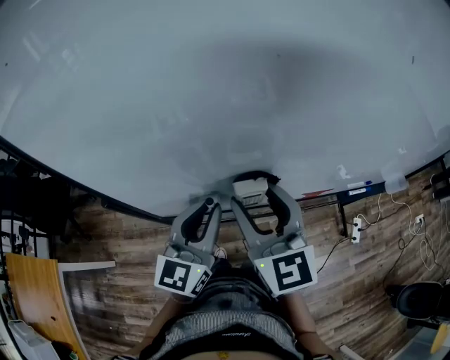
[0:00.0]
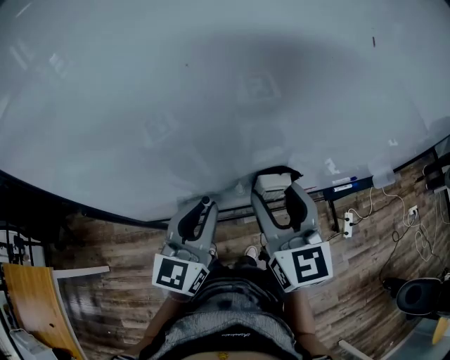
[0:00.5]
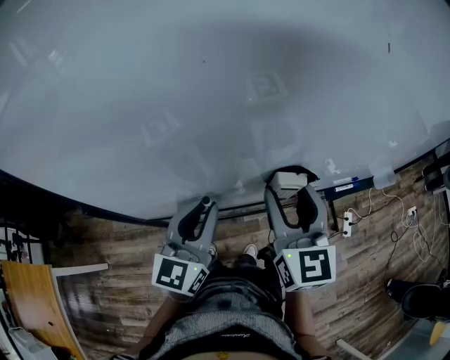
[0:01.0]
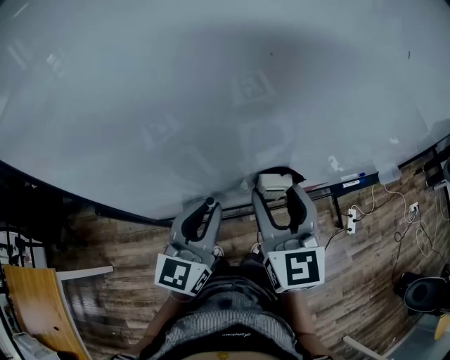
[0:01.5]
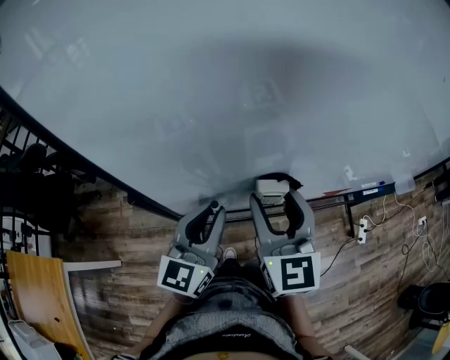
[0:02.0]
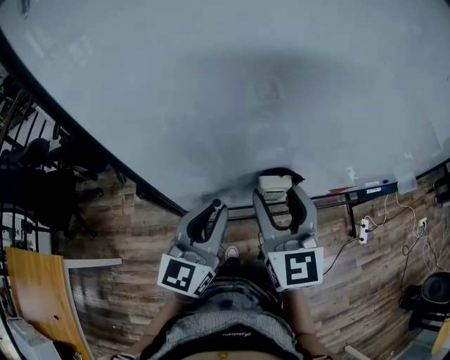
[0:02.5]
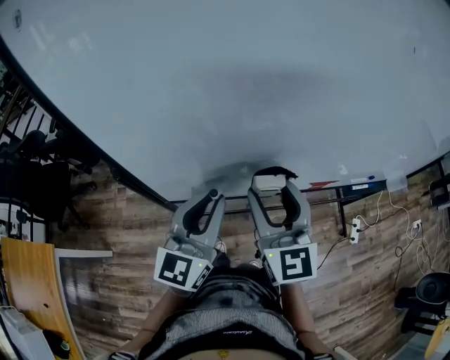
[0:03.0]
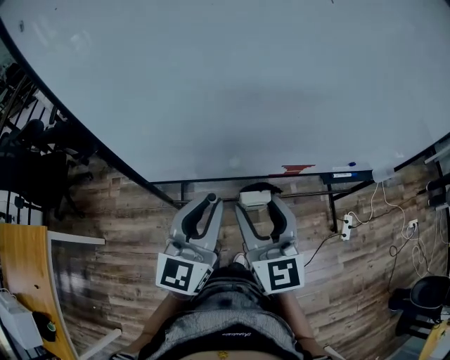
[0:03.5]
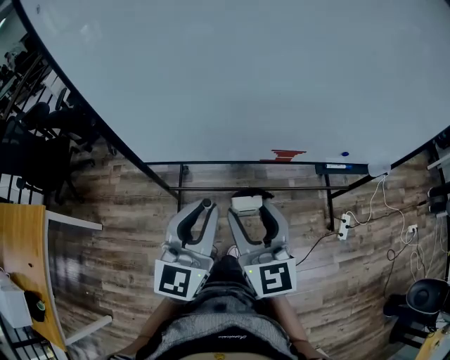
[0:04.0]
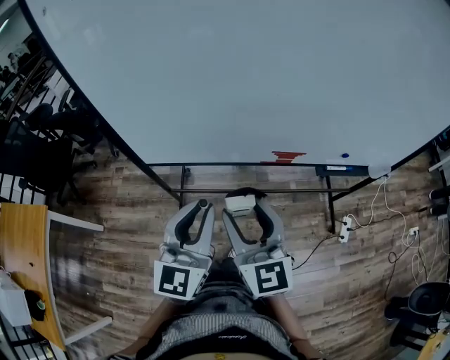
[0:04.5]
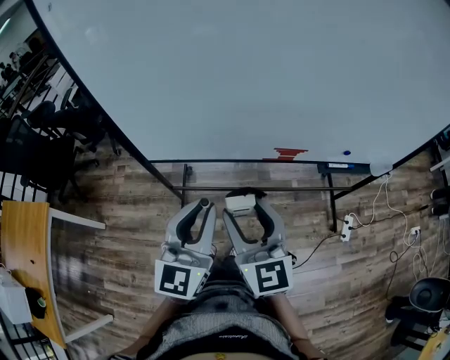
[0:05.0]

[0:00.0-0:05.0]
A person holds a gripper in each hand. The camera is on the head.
0:00.0 to 0:02.5: The left gripper travels to the left by about 10 cm. Meanwhile the right gripper moves some 10 cm to the right and comes back.
0:02.5 to 0:05.0: The left gripper moves to the right and backward, roughly 25 cm. Meanwhile the right gripper travels backward and to the right by about 25 cm.

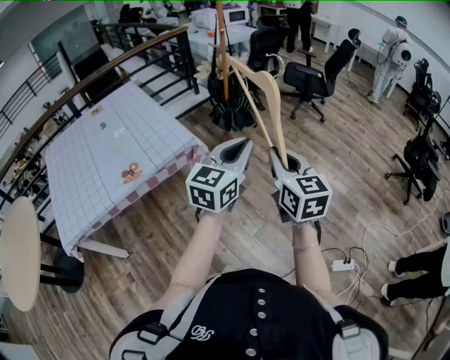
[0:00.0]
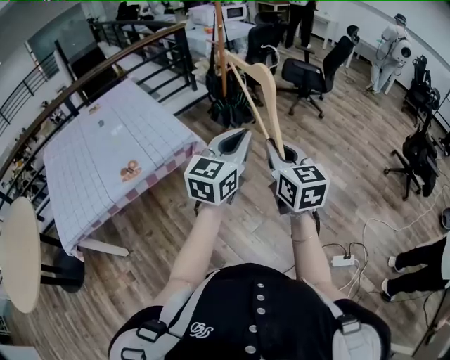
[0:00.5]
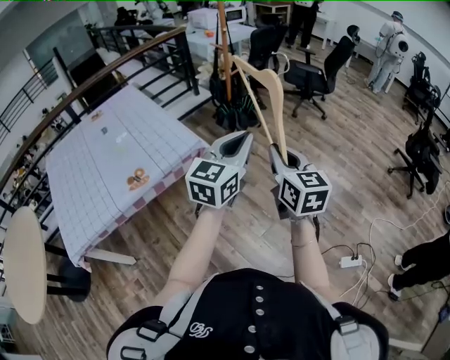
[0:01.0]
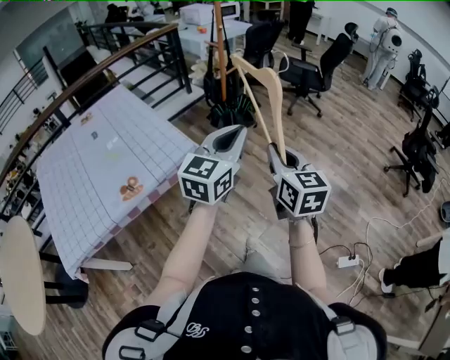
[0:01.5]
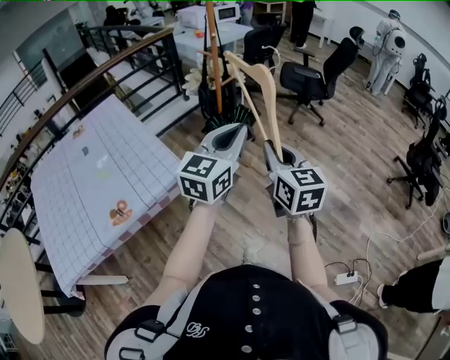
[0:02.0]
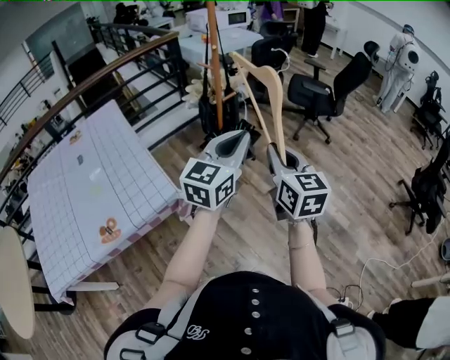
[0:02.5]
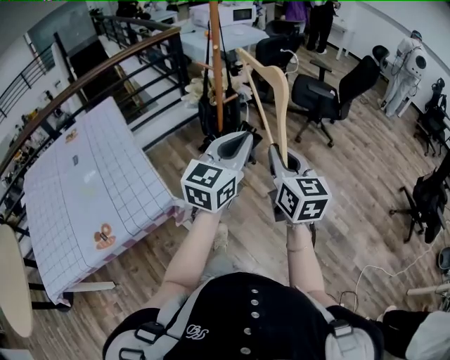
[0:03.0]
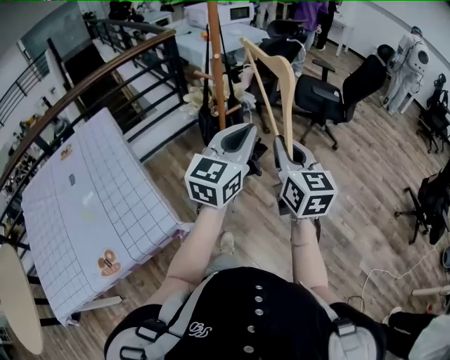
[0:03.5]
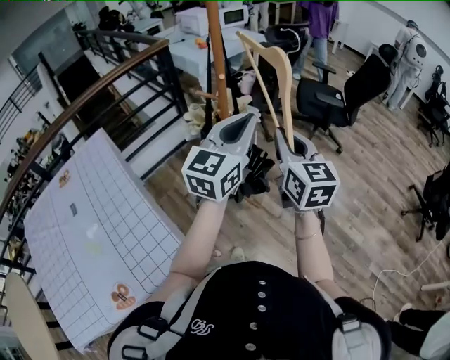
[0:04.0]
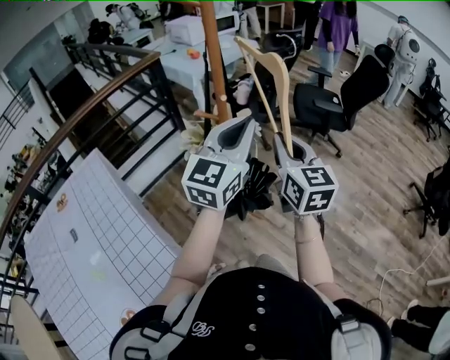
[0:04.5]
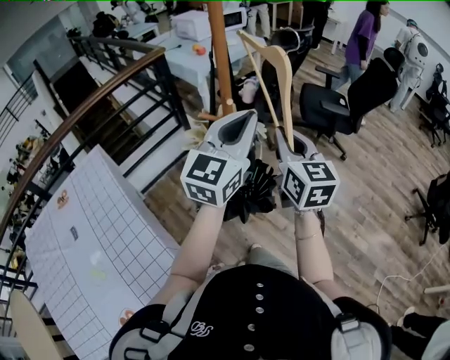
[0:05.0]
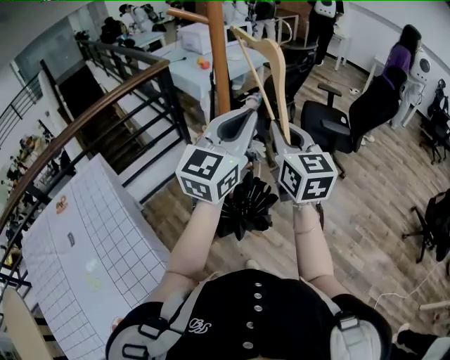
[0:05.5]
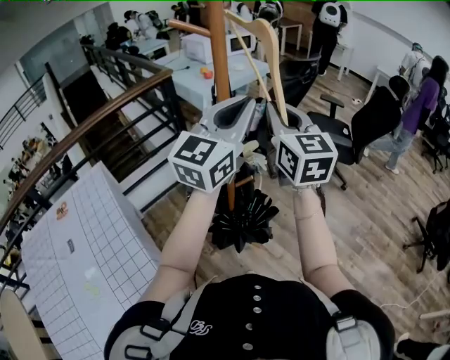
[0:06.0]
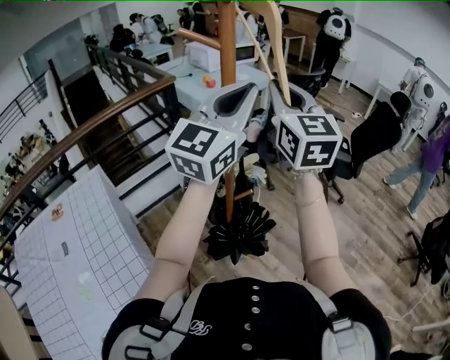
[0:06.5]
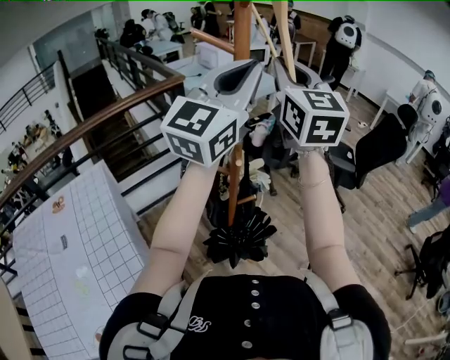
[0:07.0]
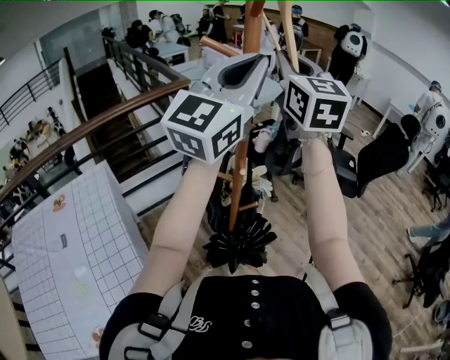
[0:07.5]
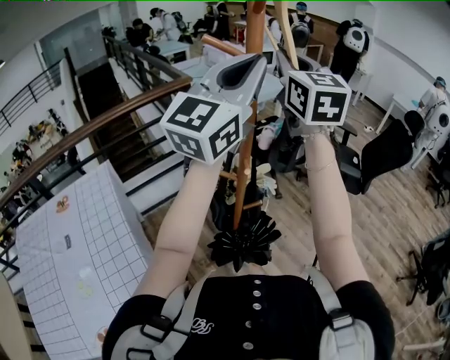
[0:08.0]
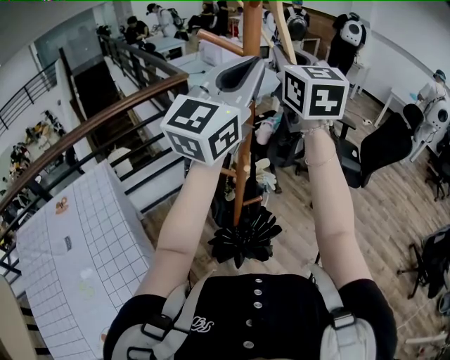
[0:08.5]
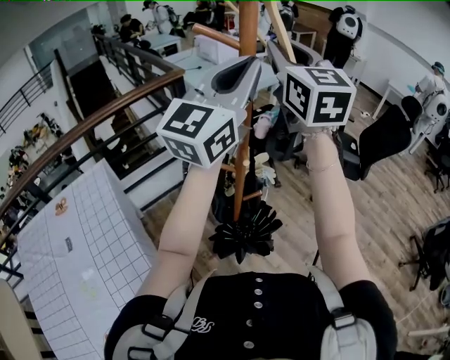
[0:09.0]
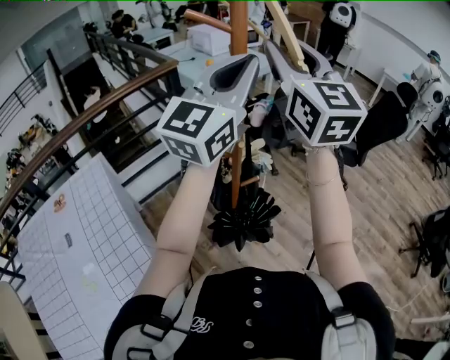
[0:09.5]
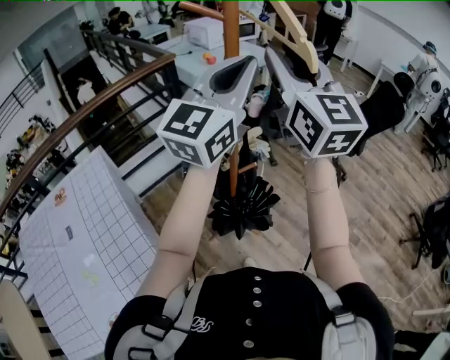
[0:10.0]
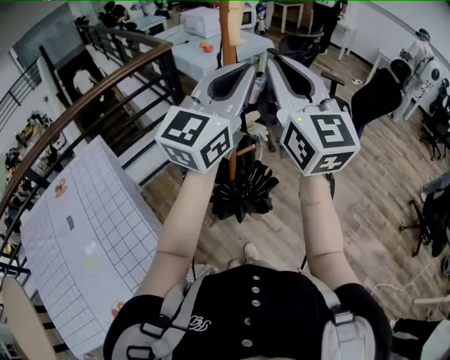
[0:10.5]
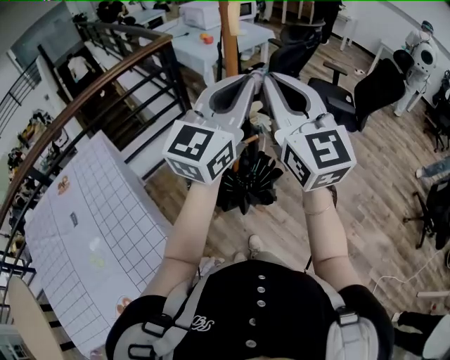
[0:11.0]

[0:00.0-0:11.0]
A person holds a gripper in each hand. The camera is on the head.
0:00.0 to 0:02.0: The grippers both shift forward by roughly 20 cm.
0:02.0 to 0:03.5: Both grippers move forward, approximately 30 cm.
0:03.5 to 0:05.5: The right gripper heads forward and to the left, covering some 25 cm, while the left gripper is displaced forward, upward and to the left by some 25 cm.
0:05.5 to 0:07.5: The left gripper heads upward, covering approximately 20 cm. The right gripper goes approximately 25 cm upward and forward.
0:07.5 to 0:09.0: The grippers make only small movements.
0:09.0 to 0:11.0: The right gripper is displaced backward and downward by roughly 25 cm, while the left gripper heads downward and backward, covering about 15 cm.

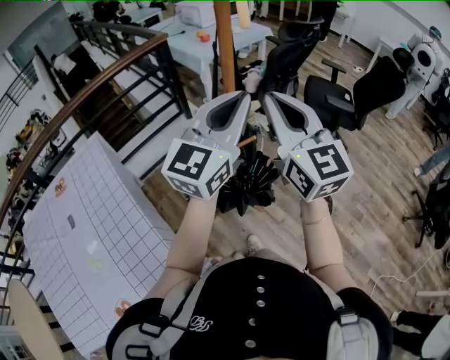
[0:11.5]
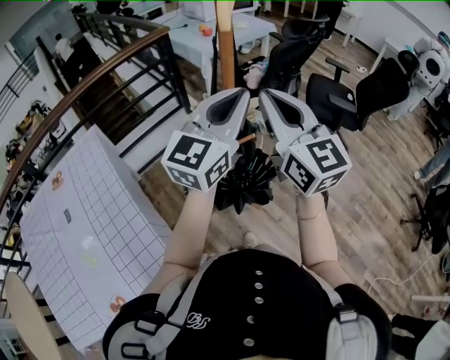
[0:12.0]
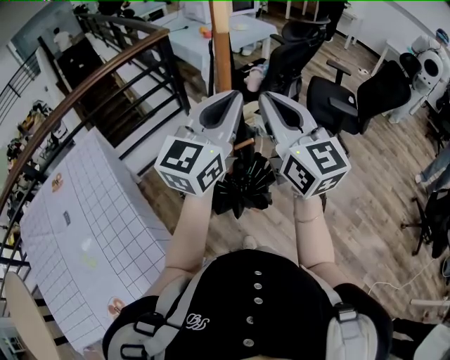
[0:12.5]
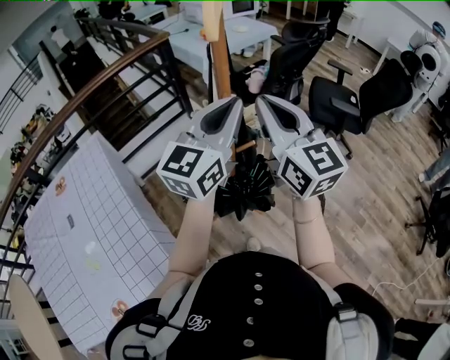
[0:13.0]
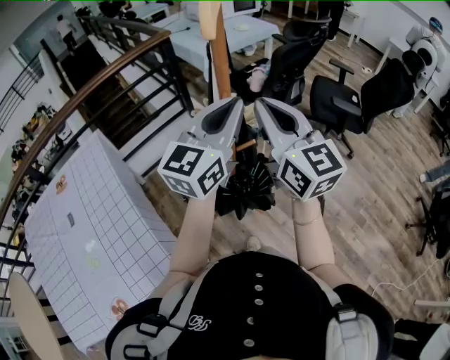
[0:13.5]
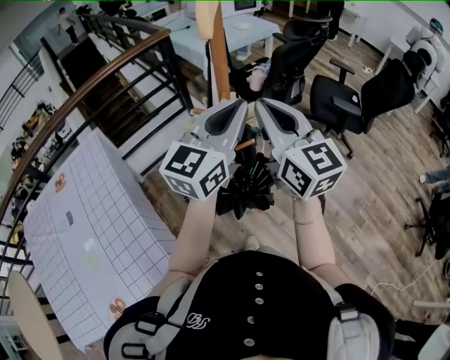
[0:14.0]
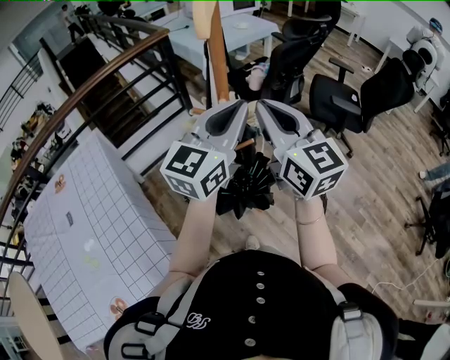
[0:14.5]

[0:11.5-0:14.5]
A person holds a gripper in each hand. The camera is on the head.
0:11.5 to 0:13.0: The grippers move only a little.
0:13.0 to 0:14.5: The grippers move only a little.

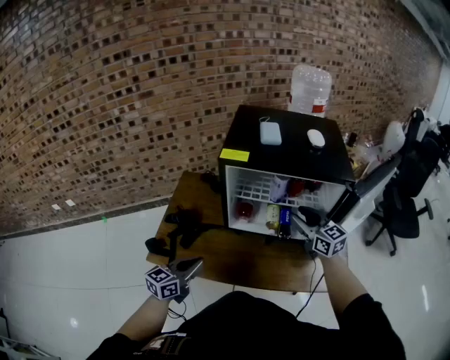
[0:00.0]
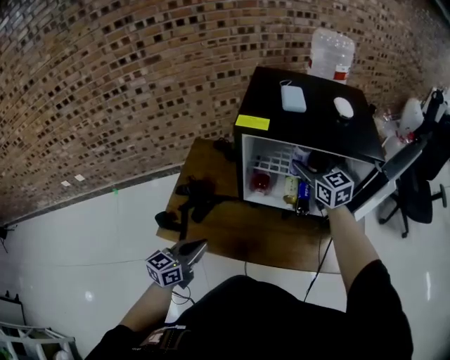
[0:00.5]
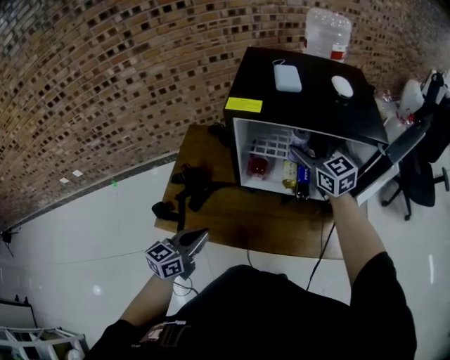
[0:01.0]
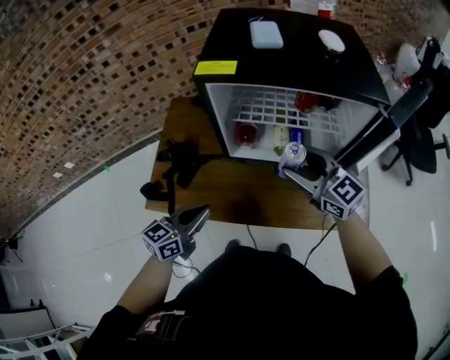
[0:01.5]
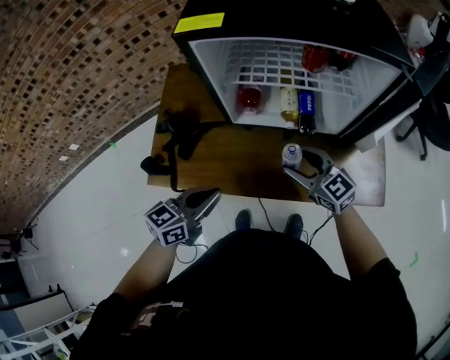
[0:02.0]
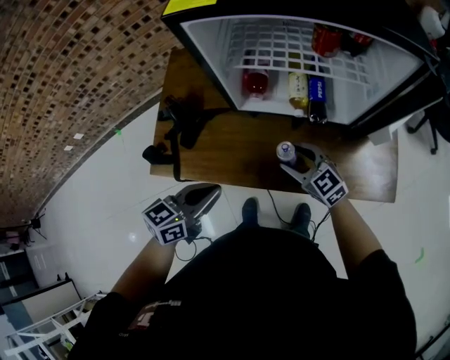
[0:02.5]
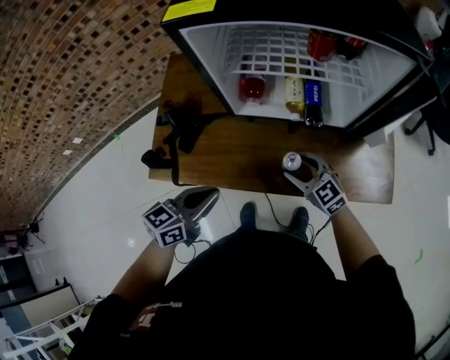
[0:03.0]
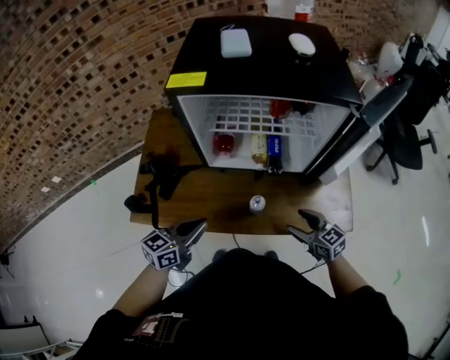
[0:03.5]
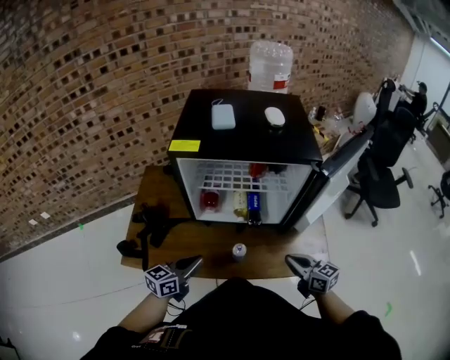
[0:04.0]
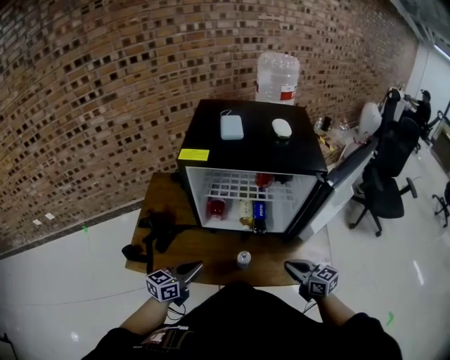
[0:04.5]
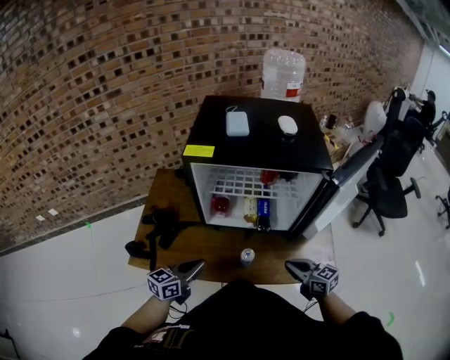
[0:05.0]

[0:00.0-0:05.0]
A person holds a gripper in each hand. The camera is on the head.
0:00.0 to 0:02.5: The left gripper goes roughly 10 cm downward, while the right gripper travels downward by roughly 25 cm, and rotates roughly 20 degrees.
0:02.5 to 0:05.0: The left gripper shifts by about 5 cm; the right gripper heads to the right, upward and backward, covering some 20 cm, swivels some 30 degrees, and closes up.

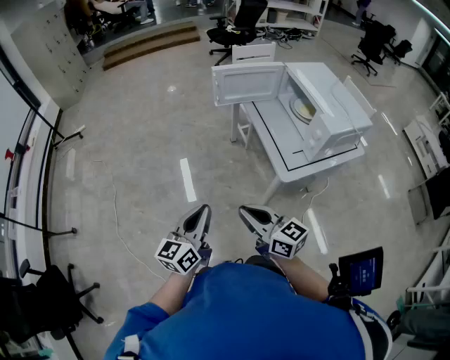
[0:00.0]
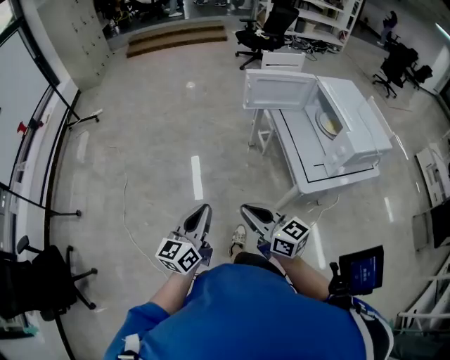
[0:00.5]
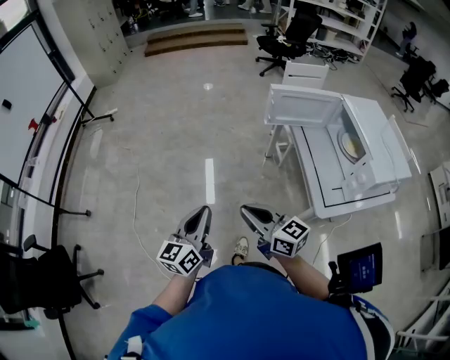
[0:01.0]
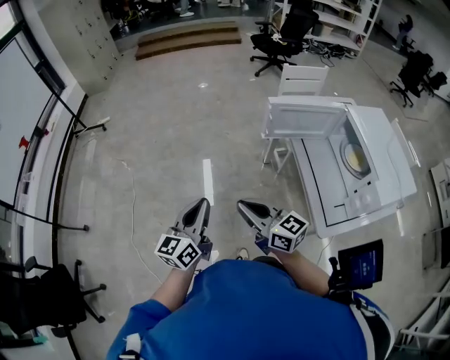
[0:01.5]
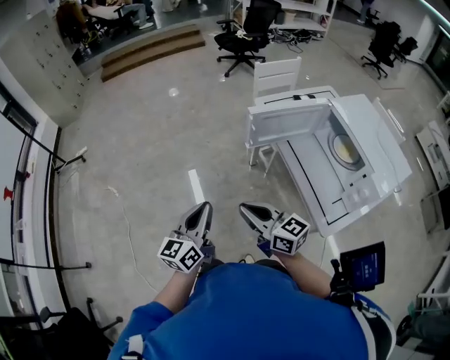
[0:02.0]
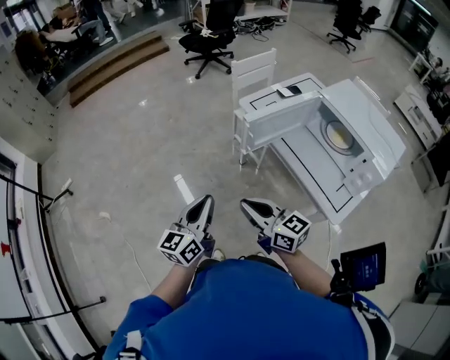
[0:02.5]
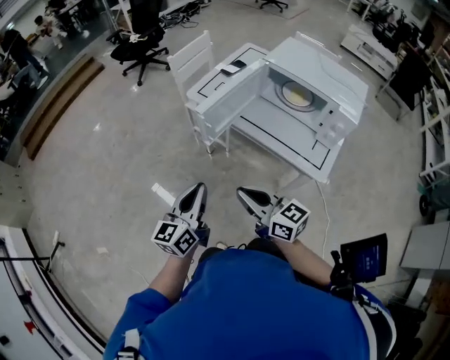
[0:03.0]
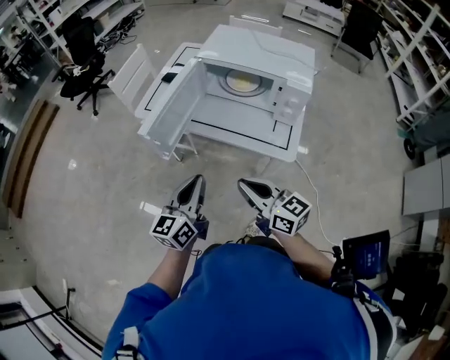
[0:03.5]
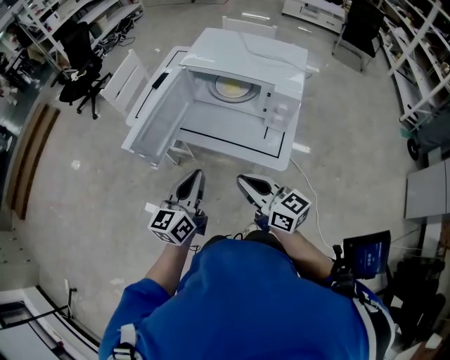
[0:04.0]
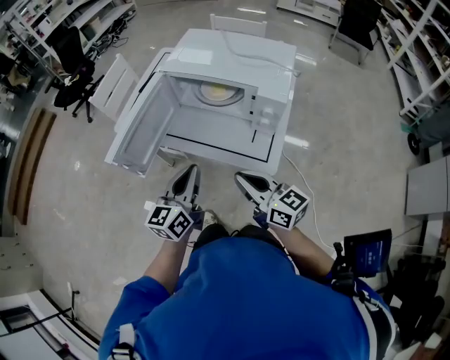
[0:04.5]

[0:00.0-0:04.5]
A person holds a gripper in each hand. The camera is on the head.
0:00.0 to 0:02.0: The two grippers go roughly 30 cm forward.
0:02.0 to 0:04.5: The left gripper moves approximately 30 cm, and changes its angle by approximately 50 degrees; the right gripper moves about 25 cm, and turns by approximately 50 degrees.
